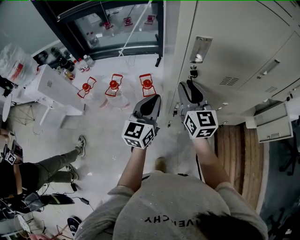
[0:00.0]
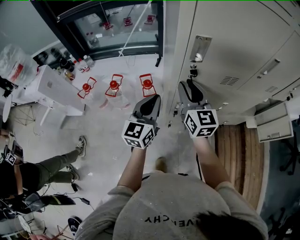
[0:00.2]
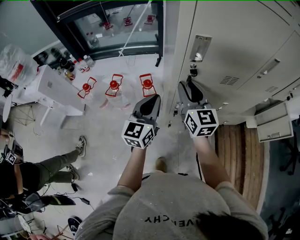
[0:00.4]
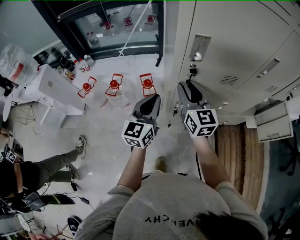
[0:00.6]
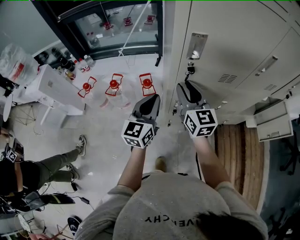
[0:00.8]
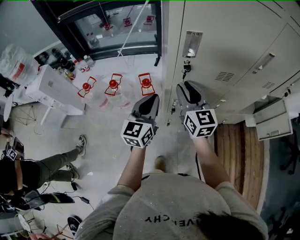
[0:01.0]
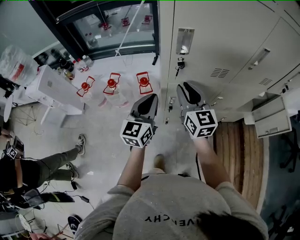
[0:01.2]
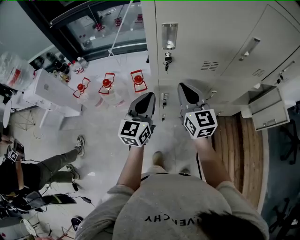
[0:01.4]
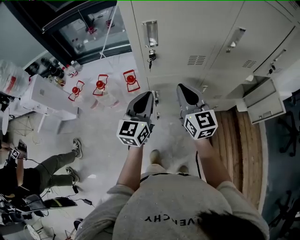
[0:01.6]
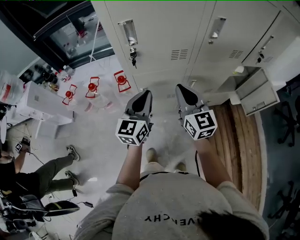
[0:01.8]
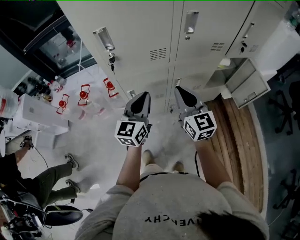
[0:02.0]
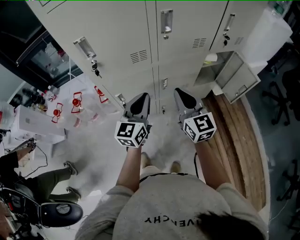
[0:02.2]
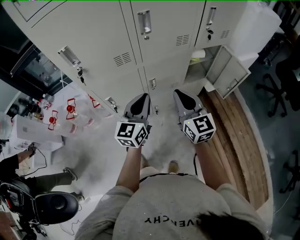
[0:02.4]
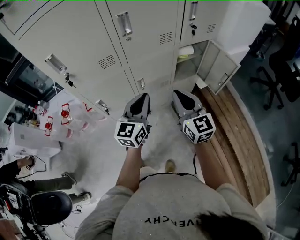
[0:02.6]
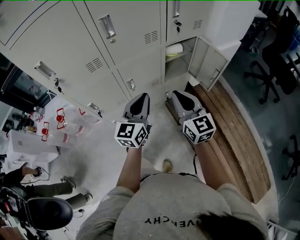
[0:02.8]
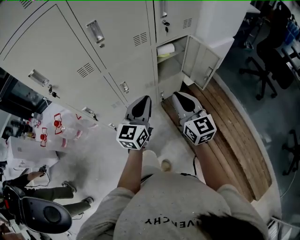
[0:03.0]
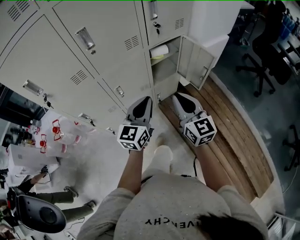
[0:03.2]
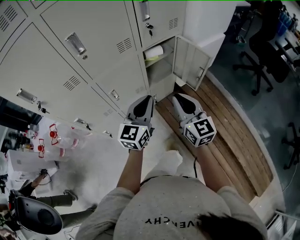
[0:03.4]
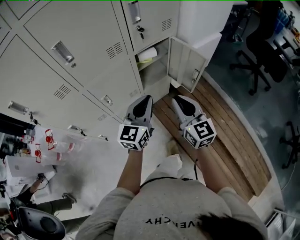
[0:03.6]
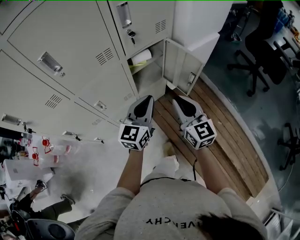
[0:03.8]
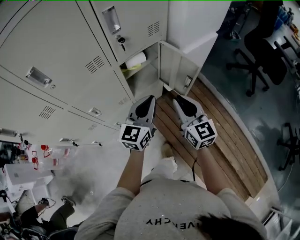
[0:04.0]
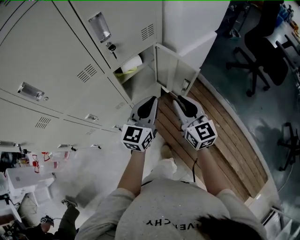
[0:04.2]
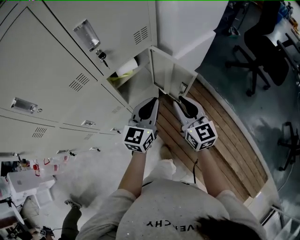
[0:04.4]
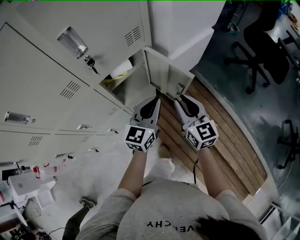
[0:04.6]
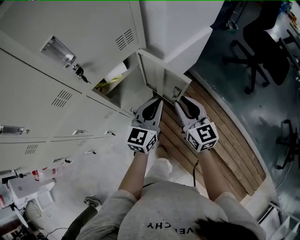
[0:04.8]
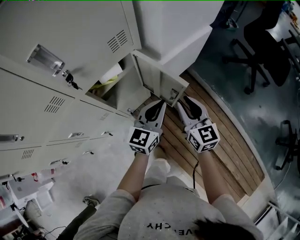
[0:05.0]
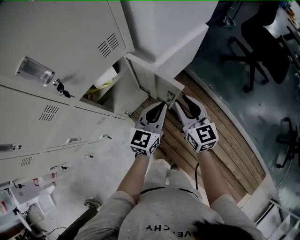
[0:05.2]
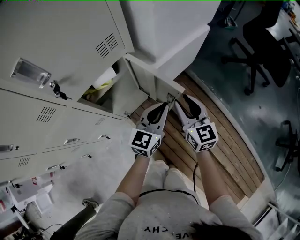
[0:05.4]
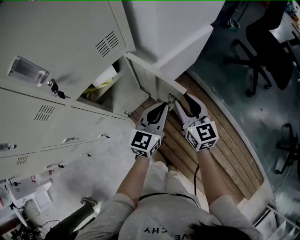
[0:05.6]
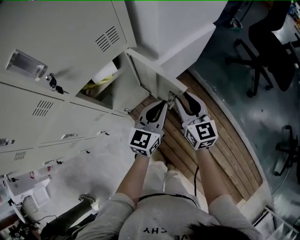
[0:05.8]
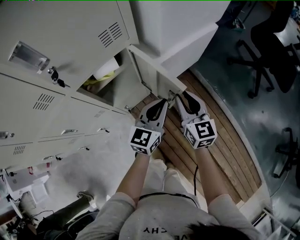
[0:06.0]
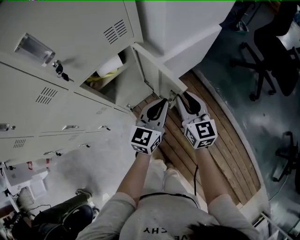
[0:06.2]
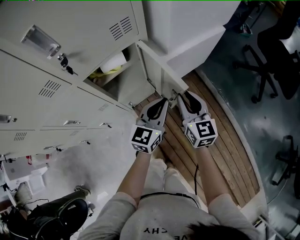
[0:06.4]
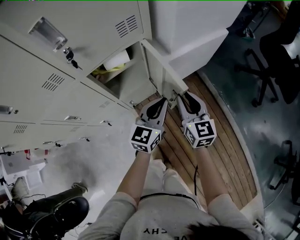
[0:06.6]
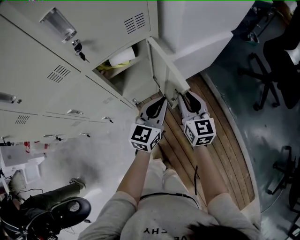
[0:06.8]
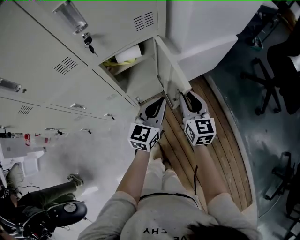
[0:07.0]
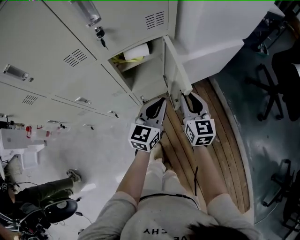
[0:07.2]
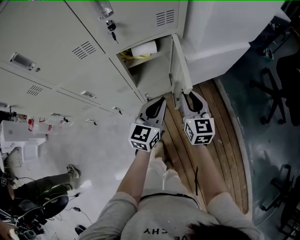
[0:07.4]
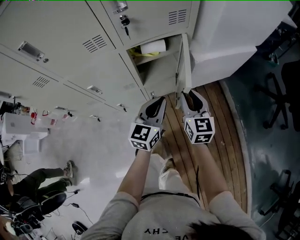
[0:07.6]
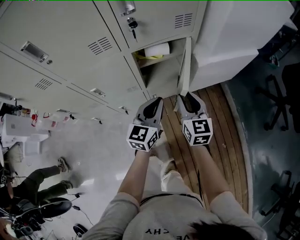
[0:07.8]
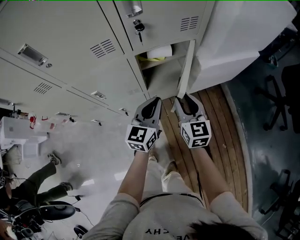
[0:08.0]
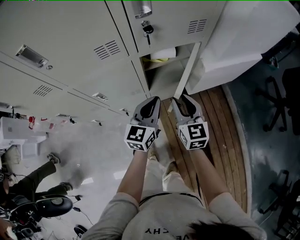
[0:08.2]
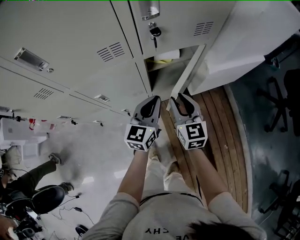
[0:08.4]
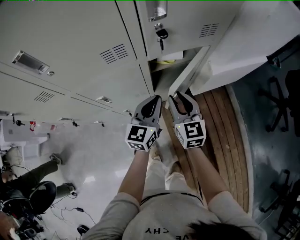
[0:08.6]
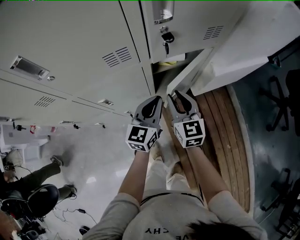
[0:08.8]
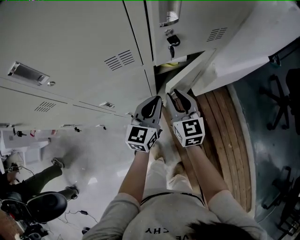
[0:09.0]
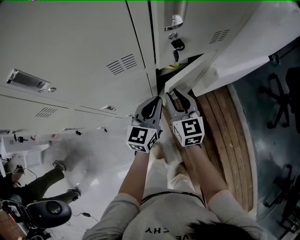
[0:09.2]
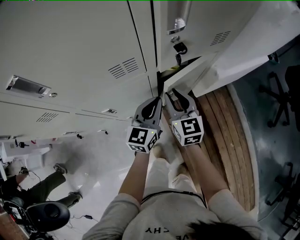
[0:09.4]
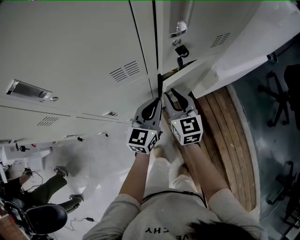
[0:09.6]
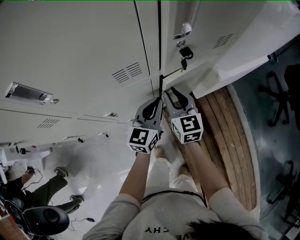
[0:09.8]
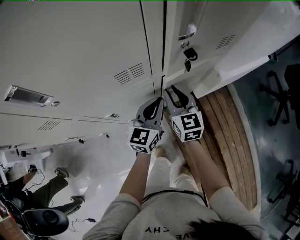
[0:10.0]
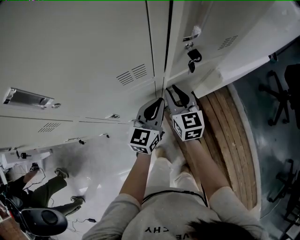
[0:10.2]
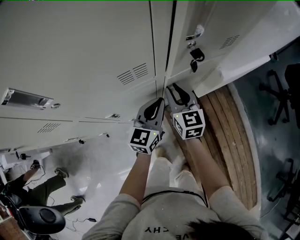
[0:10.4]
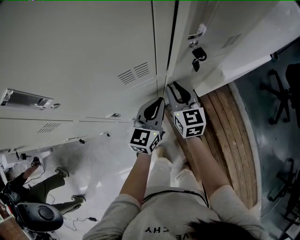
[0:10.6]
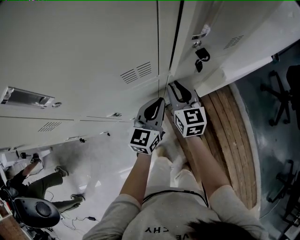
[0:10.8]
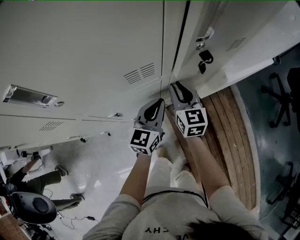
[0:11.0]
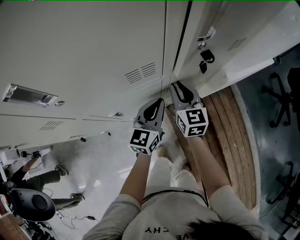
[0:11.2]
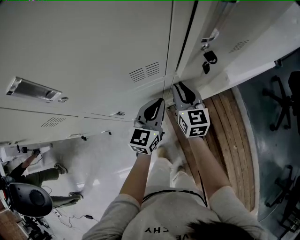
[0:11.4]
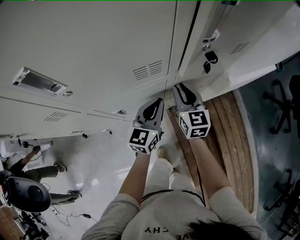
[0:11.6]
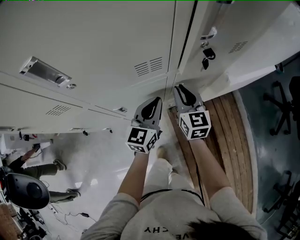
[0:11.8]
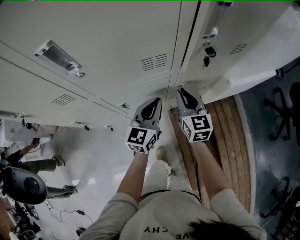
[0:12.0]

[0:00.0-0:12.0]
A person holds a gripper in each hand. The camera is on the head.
0:00.0 to 0:01.6: The grippers both shift to the right and backward by some 10 cm. The right gripper closes its fingers.
0:01.6 to 0:03.0: The pair of grippers is taken to the right, some 40 cm. The right gripper turns by approximately 20 degrees. Meanwhile the left gripper rotates some 20 degrees.
0:03.0 to 0:04.4: Both grippers travel together to the right and forward, some 30 cm.
0:04.4 to 0:06.0: The left gripper travels to the right, forward and downward by some 15 cm. Meanwhile the right gripper heads forward, downward and to the right, covering some 15 cm.
0:06.0 to 0:07.6: Both grippers travel together to the left and backward, approximately 15 cm. The left gripper changes its angle by approximately 20 degrees.
0:07.6 to 0:09.0: Both grippers move to the left and forward, some 20 cm.
0:09.0 to 0:10.4: The right gripper travels forward by roughly 5 cm.
0:10.4 to 0:12.0: The left gripper goes approximately 5 cm to the left.

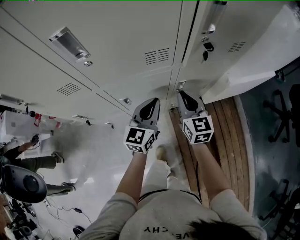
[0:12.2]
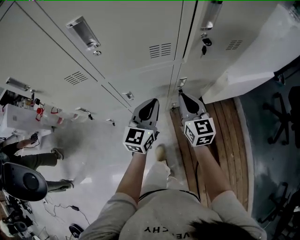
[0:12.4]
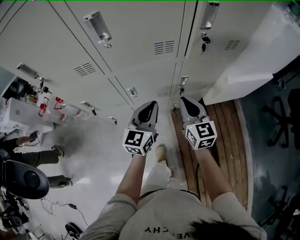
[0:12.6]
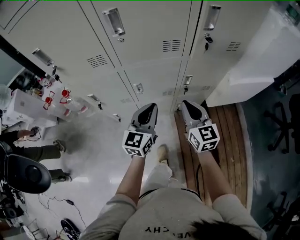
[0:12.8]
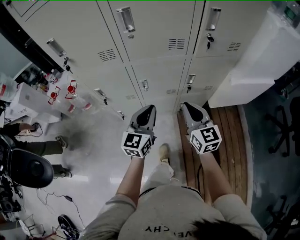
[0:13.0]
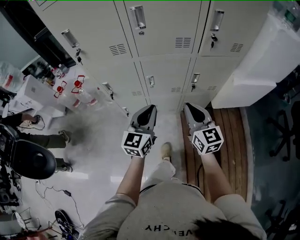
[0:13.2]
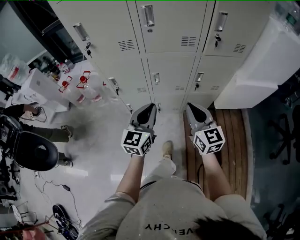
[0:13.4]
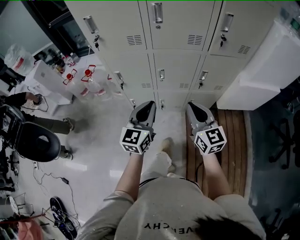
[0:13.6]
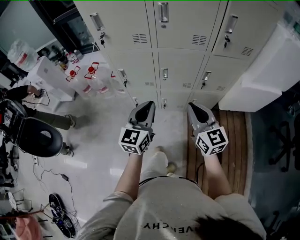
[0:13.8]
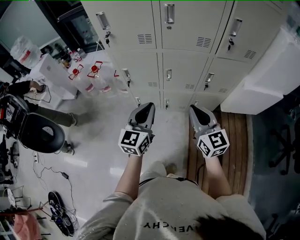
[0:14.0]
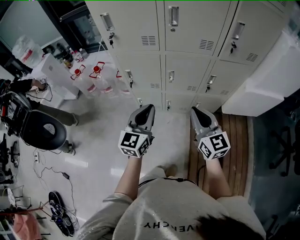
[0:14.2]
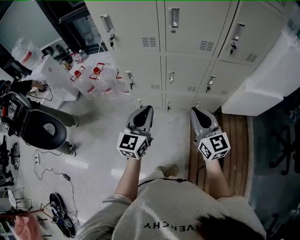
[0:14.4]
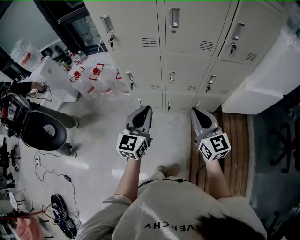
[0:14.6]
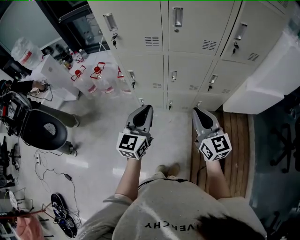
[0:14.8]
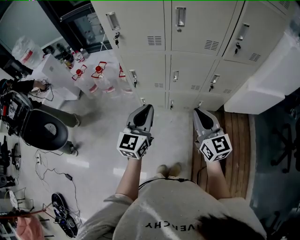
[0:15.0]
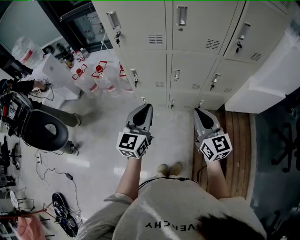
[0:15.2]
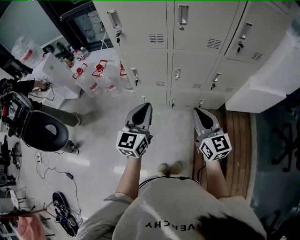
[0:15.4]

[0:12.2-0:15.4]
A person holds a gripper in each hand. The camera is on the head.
0:12.2 to 0:13.8: The left gripper shifts some 35 cm backward, to the left and upward, and changes its angle by approximately 20 degrees. Meanwhile the right gripper is displaced backward, upward and to the left by roughly 30 cm, and swivels roughly 30 degrees.
0:13.8 to 0:15.4: The left gripper shifts about 10 cm to the left, while the right gripper travels to the left by some 5 cm.

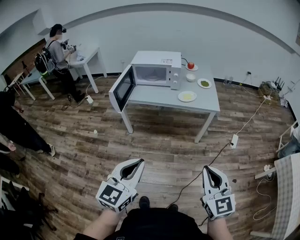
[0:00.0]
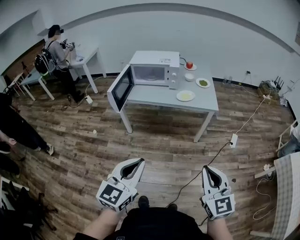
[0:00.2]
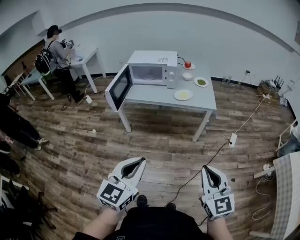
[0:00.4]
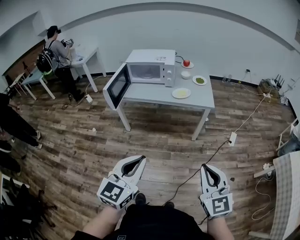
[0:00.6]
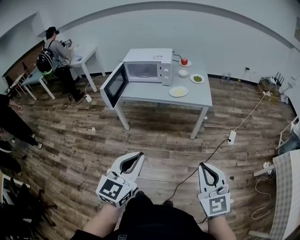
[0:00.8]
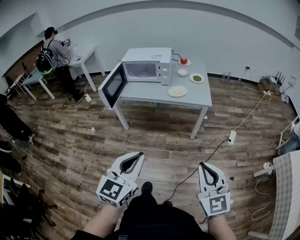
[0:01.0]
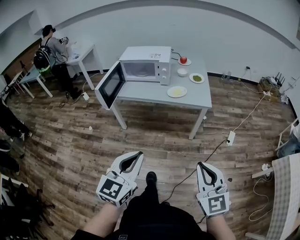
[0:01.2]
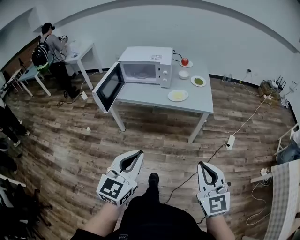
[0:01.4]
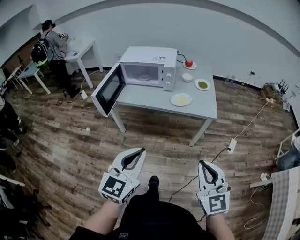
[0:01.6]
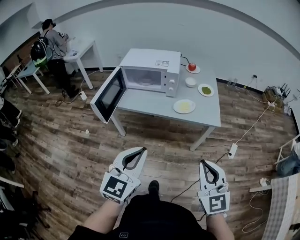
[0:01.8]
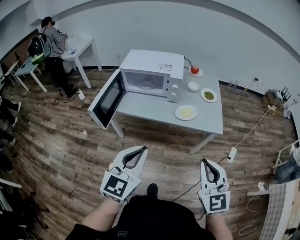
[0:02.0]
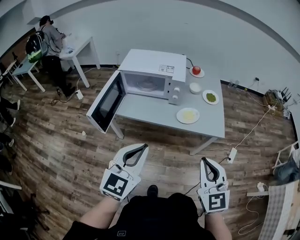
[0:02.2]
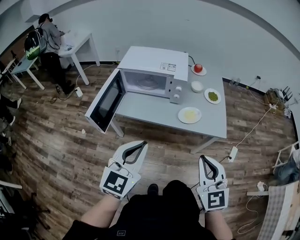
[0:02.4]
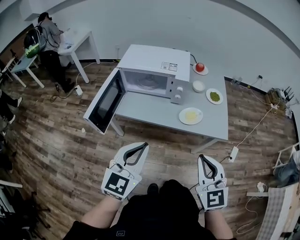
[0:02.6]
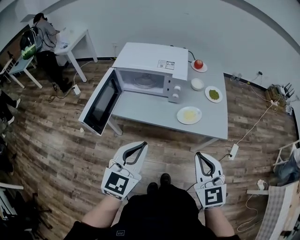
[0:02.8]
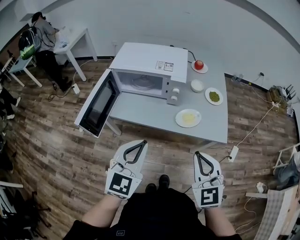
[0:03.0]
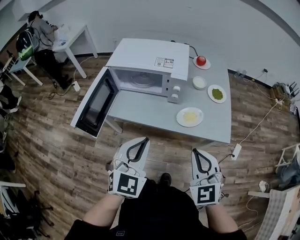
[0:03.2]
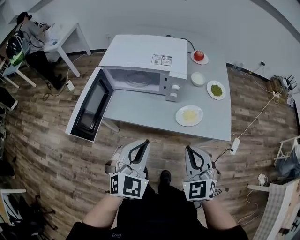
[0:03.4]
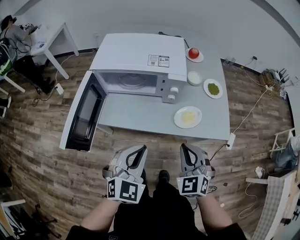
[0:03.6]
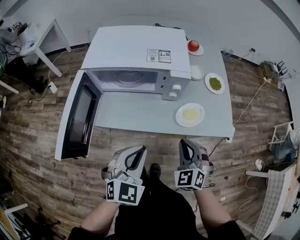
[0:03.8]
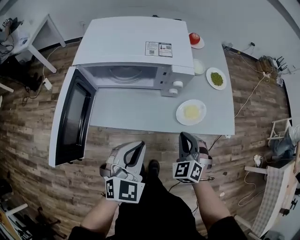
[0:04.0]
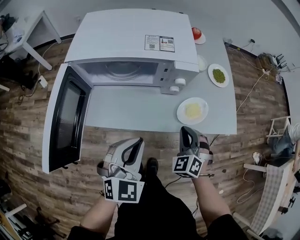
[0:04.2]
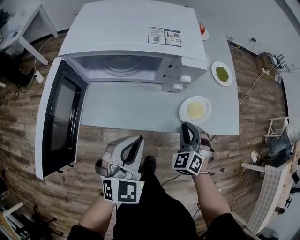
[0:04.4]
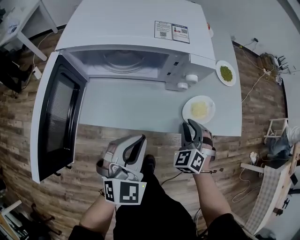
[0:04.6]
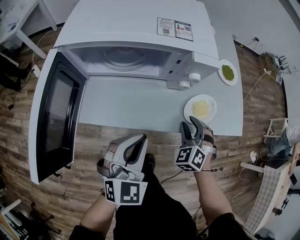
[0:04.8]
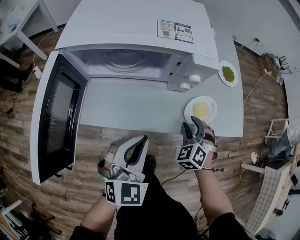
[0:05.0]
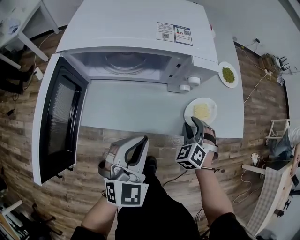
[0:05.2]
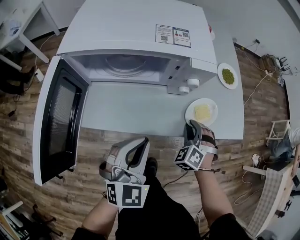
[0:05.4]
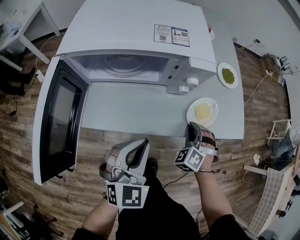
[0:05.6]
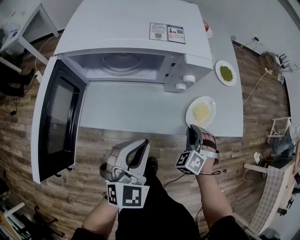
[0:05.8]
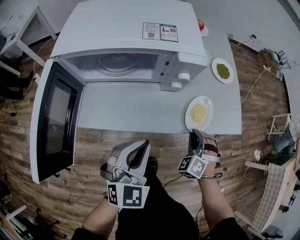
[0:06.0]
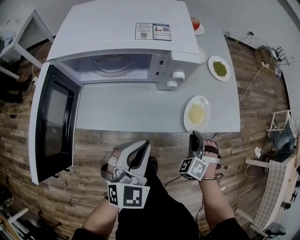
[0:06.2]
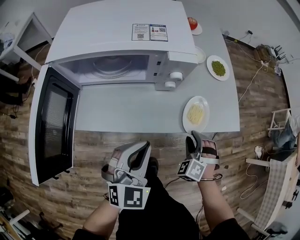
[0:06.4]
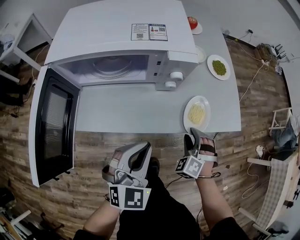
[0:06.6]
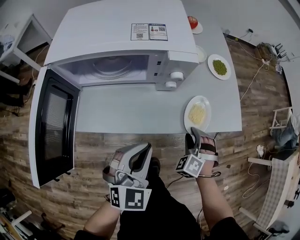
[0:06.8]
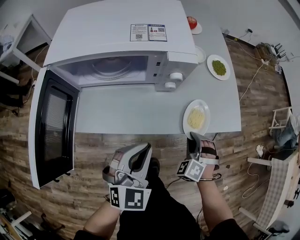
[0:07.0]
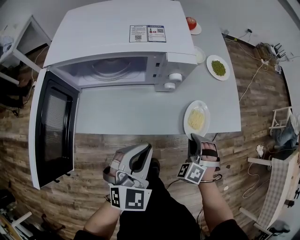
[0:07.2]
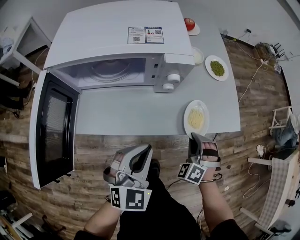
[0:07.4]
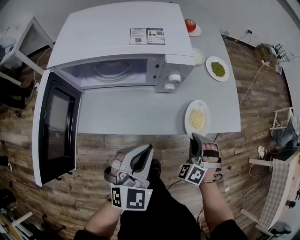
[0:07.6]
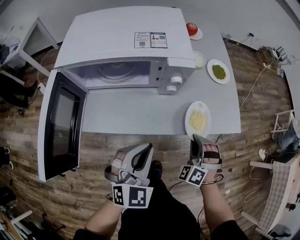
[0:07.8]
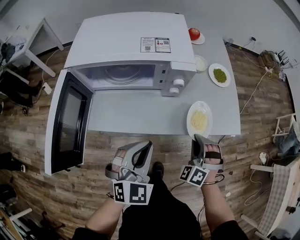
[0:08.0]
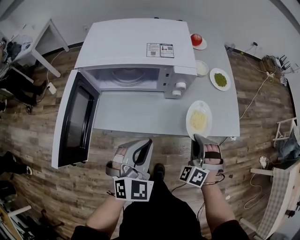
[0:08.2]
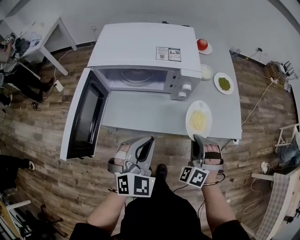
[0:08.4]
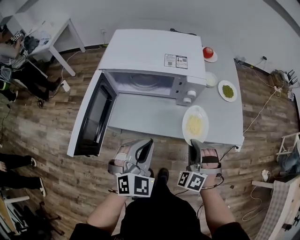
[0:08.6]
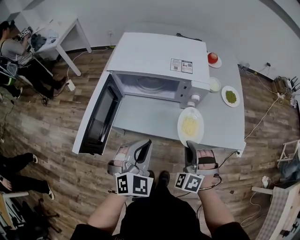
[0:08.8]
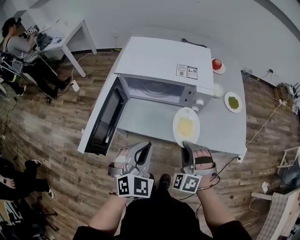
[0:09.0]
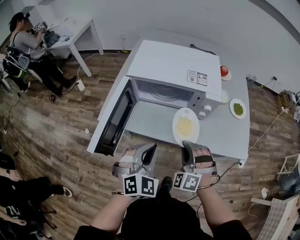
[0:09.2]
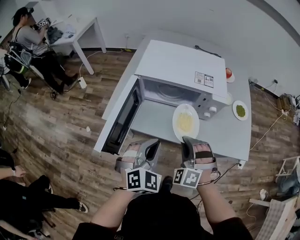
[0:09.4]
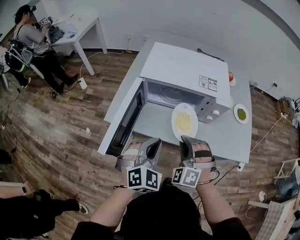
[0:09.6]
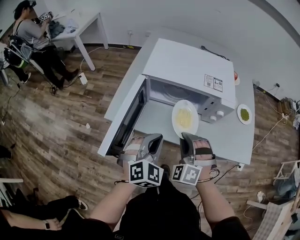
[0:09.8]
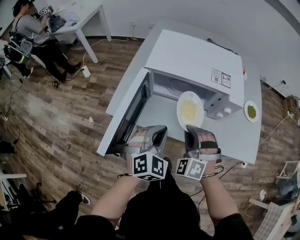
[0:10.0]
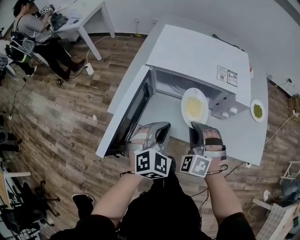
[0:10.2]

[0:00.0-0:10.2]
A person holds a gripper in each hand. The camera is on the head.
0:00.0 to 0:01.4: The grippers both shift forward and to the right by about 10 cm.
0:01.4 to 0:03.0: The two grippers go approximately 35 cm forward.
0:03.0 to 0:04.4: Both grippers travel together downward and forward, some 30 cm. The right gripper rotates some 40 degrees.
0:04.4 to 0:05.8: The right gripper moves some 5 cm, and opens and closes again.
0:05.8 to 0:07.2: The right gripper shifts by roughly 5 cm, and opens, then closes again.
0:07.2 to 0:08.8: The left gripper heads upward and to the left, covering about 10 cm. The right gripper shifts some 20 cm upward and to the left, and turns by roughly 20 degrees.
0:08.8 to 0:10.2: The two grippers go roughly 15 cm to the left and forward.
